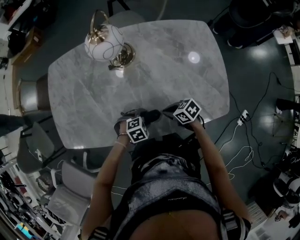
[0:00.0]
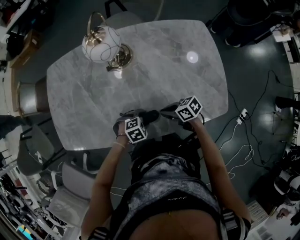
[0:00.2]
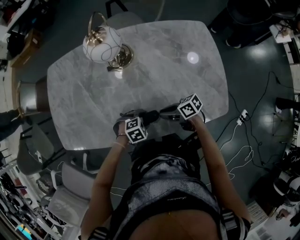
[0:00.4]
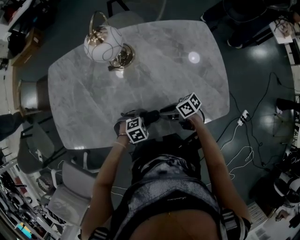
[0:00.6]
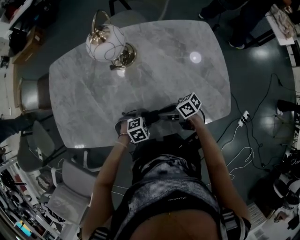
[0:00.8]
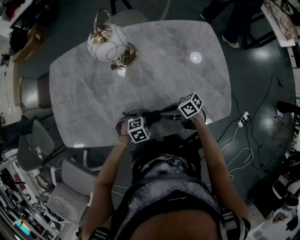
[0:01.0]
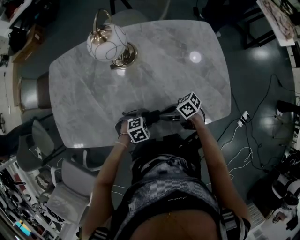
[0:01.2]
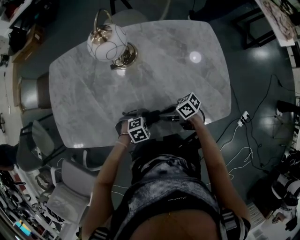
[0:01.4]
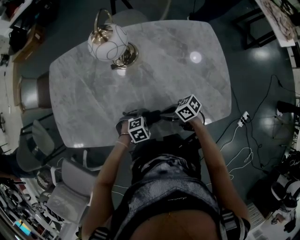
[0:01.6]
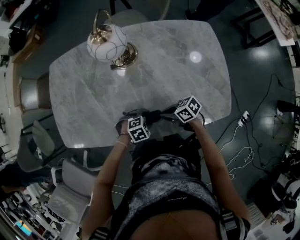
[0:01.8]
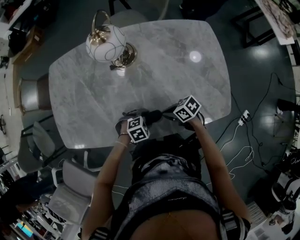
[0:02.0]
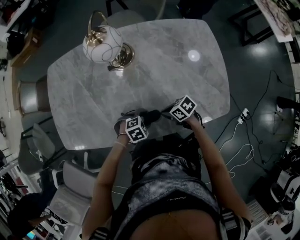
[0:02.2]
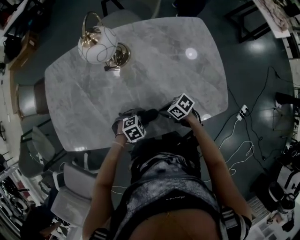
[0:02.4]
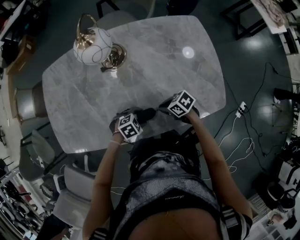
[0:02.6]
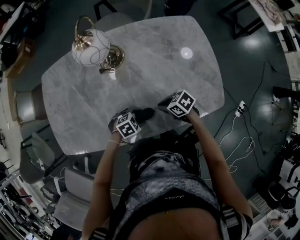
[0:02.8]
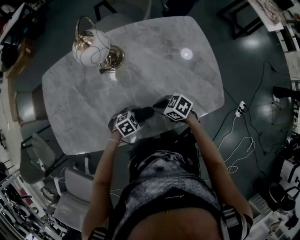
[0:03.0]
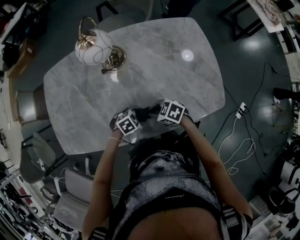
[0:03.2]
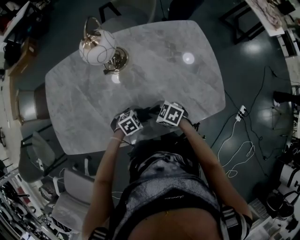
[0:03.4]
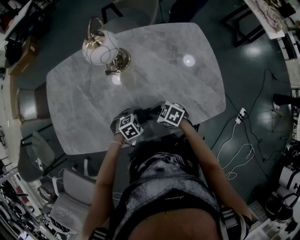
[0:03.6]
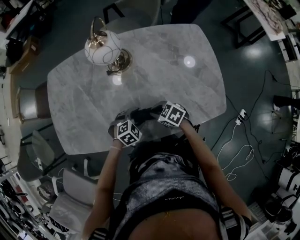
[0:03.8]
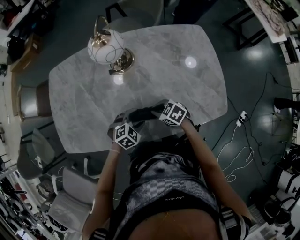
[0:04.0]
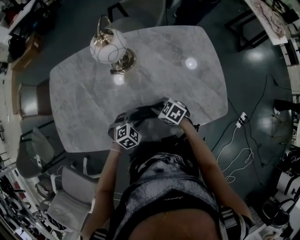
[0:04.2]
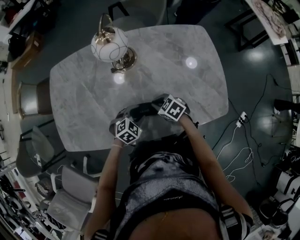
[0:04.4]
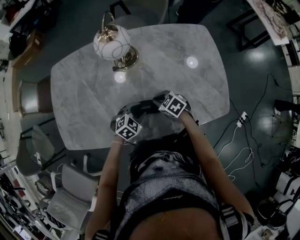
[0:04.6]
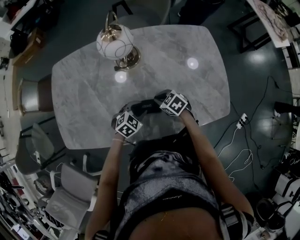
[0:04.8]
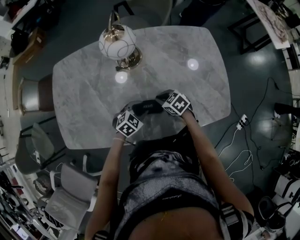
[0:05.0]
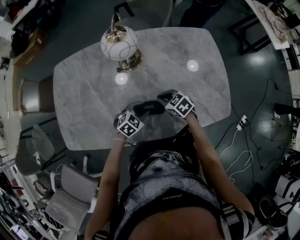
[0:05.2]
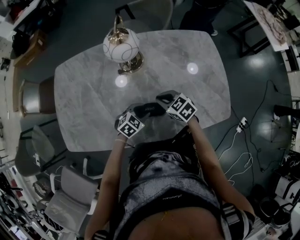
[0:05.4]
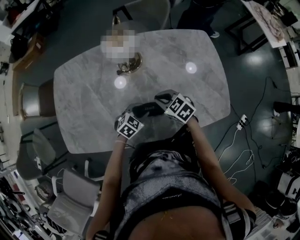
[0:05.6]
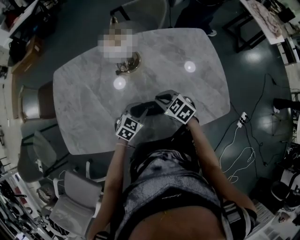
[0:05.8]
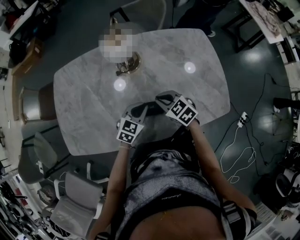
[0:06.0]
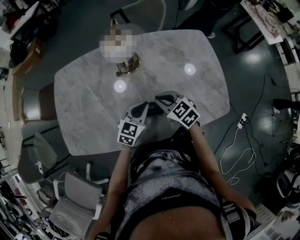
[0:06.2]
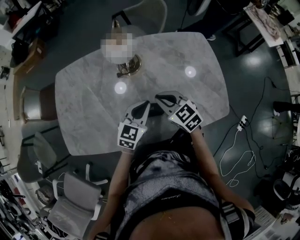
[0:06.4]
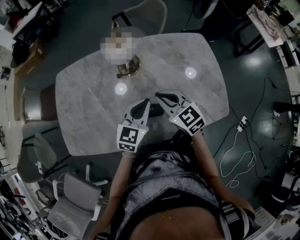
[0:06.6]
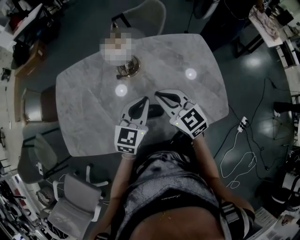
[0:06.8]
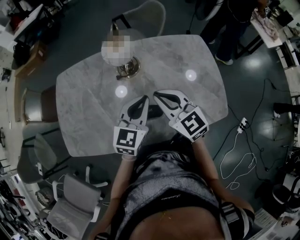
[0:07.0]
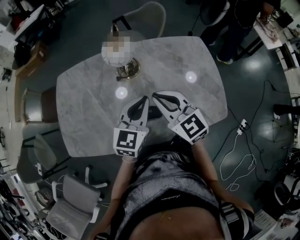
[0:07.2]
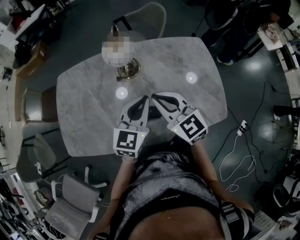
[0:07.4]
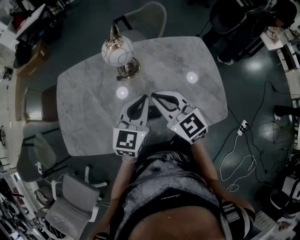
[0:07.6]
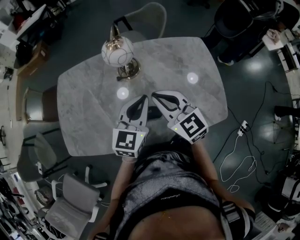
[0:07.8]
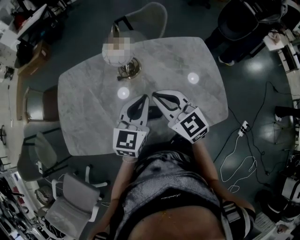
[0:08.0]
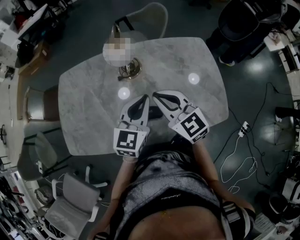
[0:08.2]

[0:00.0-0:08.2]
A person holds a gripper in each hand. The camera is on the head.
0:01.6 to 0:03.2: The right gripper turns by some 30 degrees.
0:03.2 to 0:05.0: The right gripper moves about 10 cm. The left gripper shifts by roughly 10 cm, swivels some 30 degrees, and closes.
0:05.0 to 0:06.6: Both grippers move upward, about 20 cm. The right gripper rotates some 30 degrees. Meanwhile the left gripper points its fingers some 30 degrees further upward, and closes its fingers.
0:06.6 to 0:08.2: Both grippers travel together upward, some 5 cm.

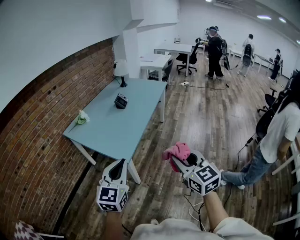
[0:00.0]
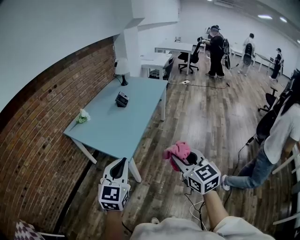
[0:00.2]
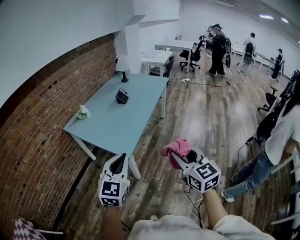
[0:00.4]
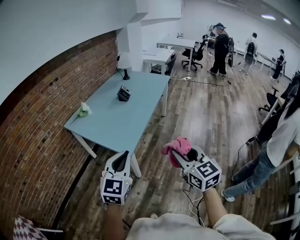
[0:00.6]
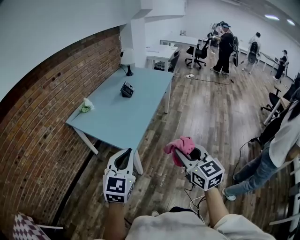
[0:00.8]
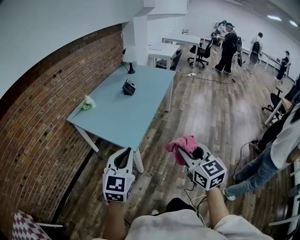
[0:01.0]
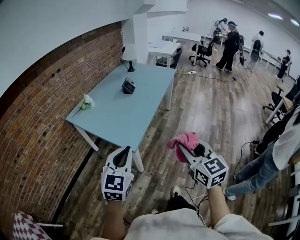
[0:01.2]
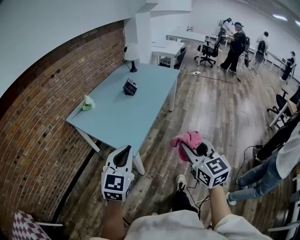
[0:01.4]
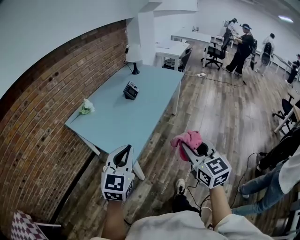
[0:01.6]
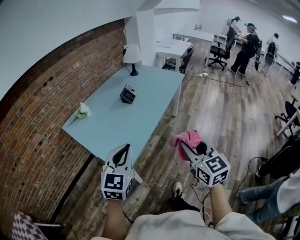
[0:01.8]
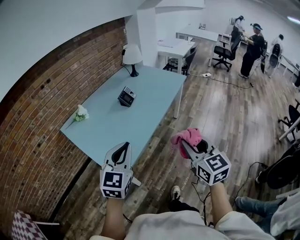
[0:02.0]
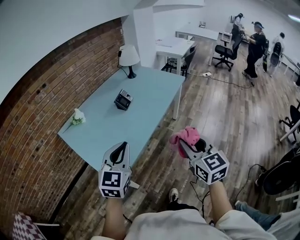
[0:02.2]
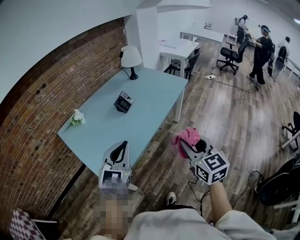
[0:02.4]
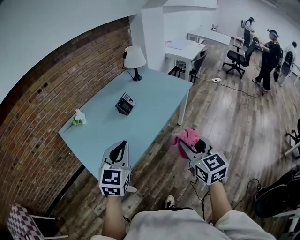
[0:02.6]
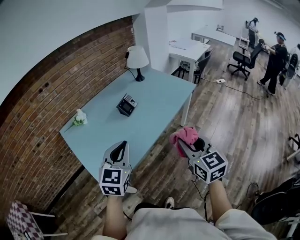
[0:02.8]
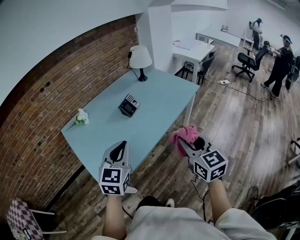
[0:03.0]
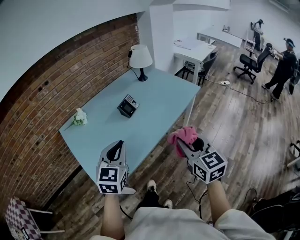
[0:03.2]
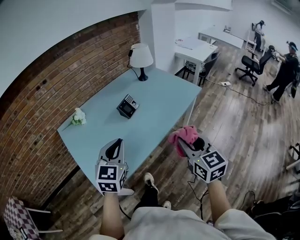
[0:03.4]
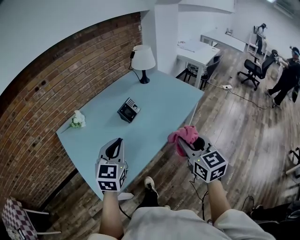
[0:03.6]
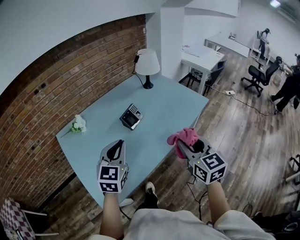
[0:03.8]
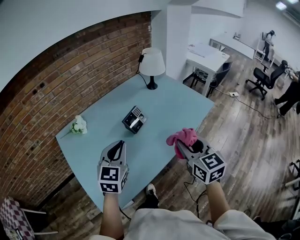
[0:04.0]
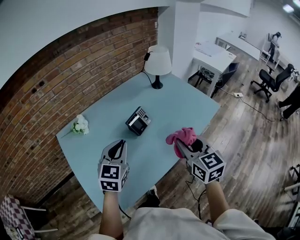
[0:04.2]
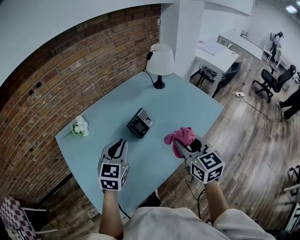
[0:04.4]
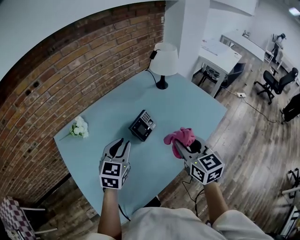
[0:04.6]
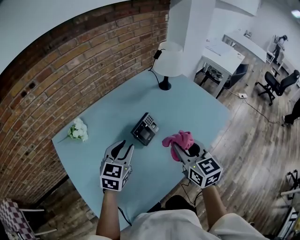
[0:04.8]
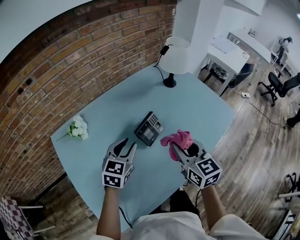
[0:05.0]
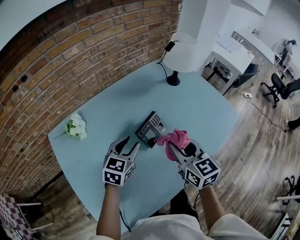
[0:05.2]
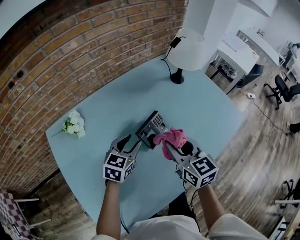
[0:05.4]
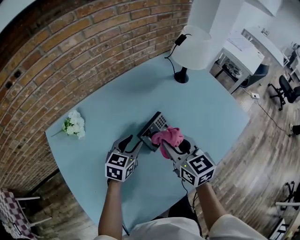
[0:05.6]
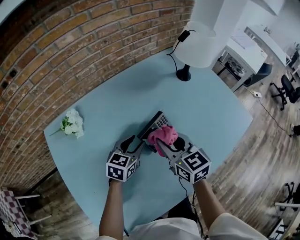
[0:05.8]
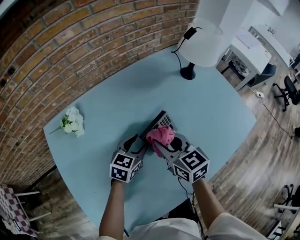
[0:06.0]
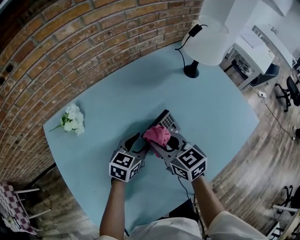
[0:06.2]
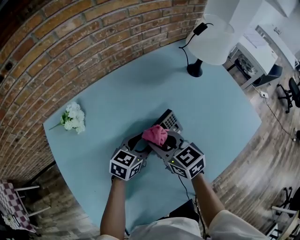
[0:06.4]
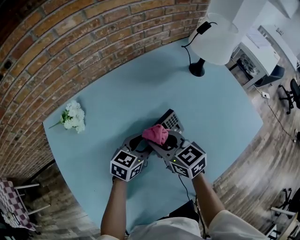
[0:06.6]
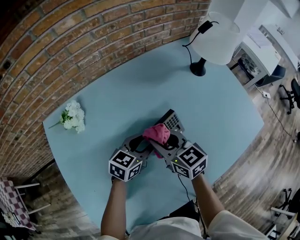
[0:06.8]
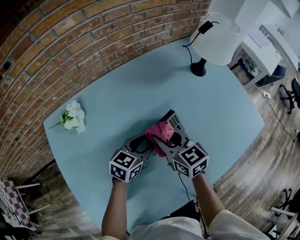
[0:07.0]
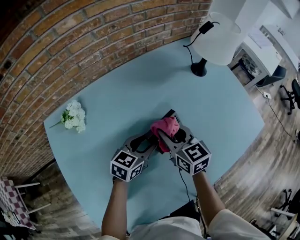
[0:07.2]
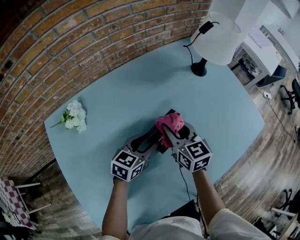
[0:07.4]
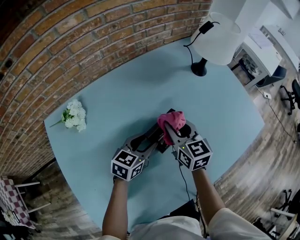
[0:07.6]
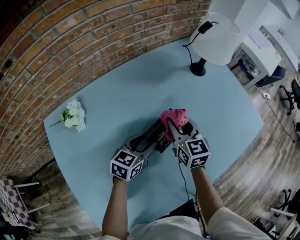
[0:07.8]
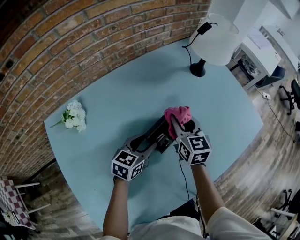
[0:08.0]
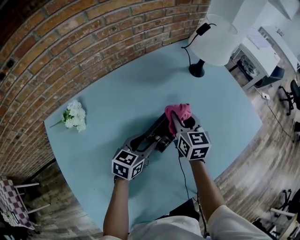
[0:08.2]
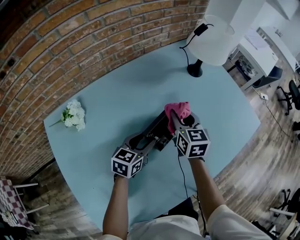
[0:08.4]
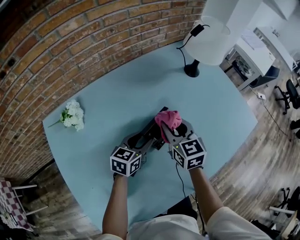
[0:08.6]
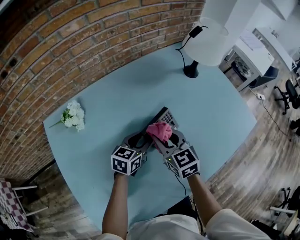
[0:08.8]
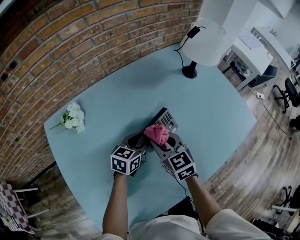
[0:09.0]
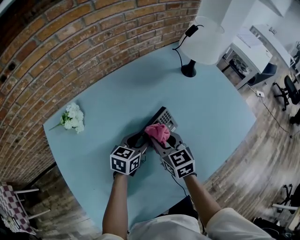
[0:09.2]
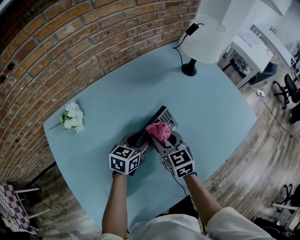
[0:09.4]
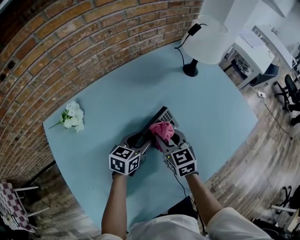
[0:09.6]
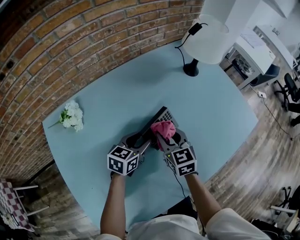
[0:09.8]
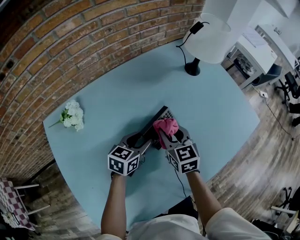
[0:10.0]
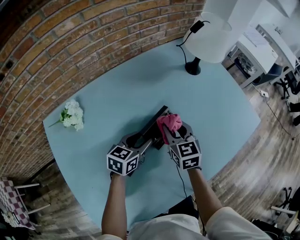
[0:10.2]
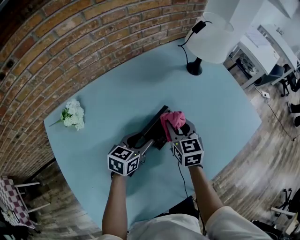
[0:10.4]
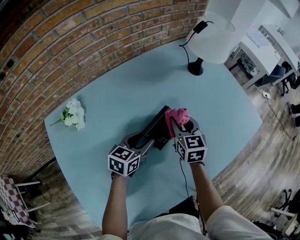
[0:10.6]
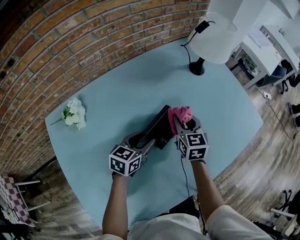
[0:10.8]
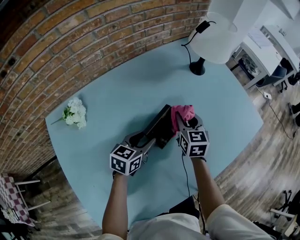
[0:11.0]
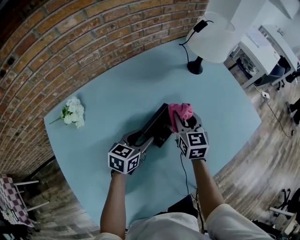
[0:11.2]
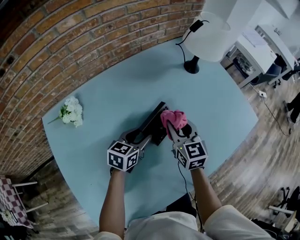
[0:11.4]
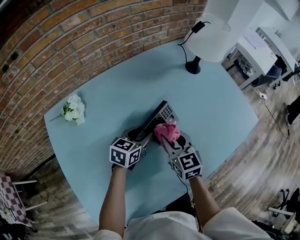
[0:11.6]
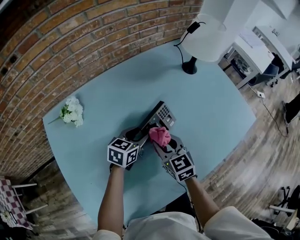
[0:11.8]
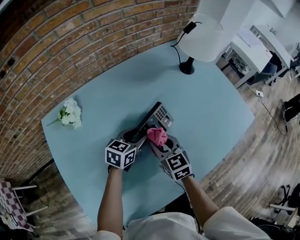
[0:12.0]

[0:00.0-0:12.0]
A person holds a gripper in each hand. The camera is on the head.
0:00.0 to 0:01.6: Both grippers travel together forward, some 15 cm.
0:01.6 to 0:03.0: Both grippers travel together forward and to the right, about 30 cm.
0:03.0 to 0:04.4: Both grippers travel together forward, approximately 30 cm.
0:04.4 to 0:06.0: The left gripper travels downward and forward by some 30 cm, rotates some 20 degrees, and opens up. The right gripper is displaced forward, downward and to the left by some 30 cm, and turns by some 20 degrees.
0:06.0 to 0:07.6: The right gripper shifts roughly 5 cm forward.
0:07.6 to 0:09.0: The right gripper shifts some 10 cm backward.
0:09.0 to 0:10.4: The right gripper shifts about 10 cm forward and to the right.
0:10.4 to 0:12.0: The right gripper goes approximately 10 cm backward.

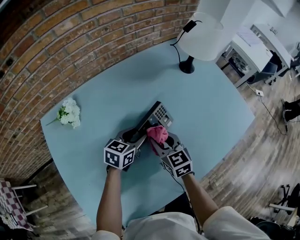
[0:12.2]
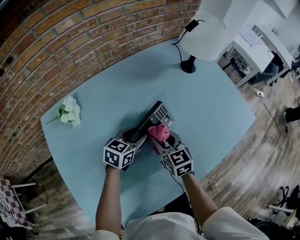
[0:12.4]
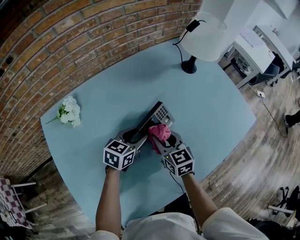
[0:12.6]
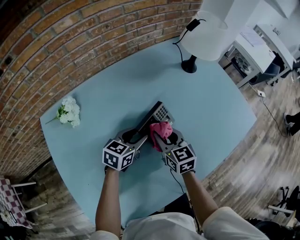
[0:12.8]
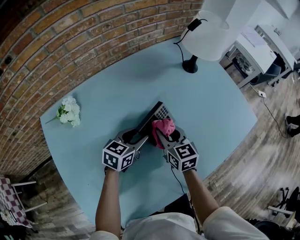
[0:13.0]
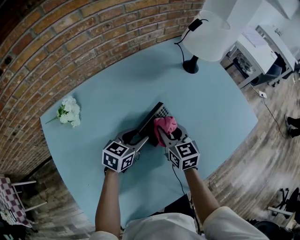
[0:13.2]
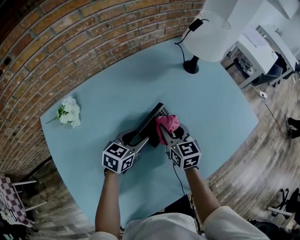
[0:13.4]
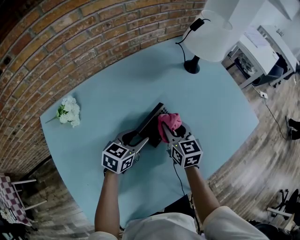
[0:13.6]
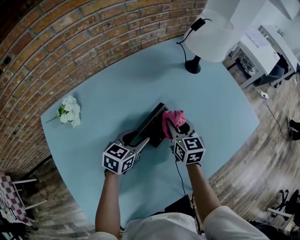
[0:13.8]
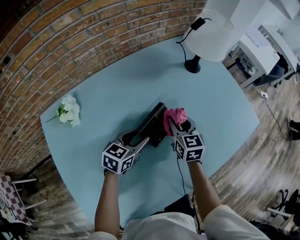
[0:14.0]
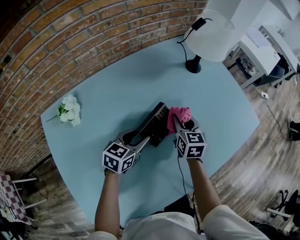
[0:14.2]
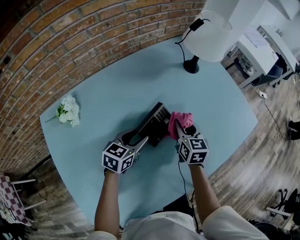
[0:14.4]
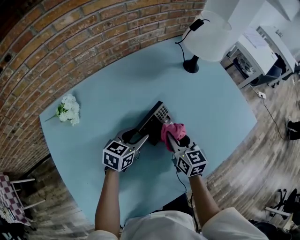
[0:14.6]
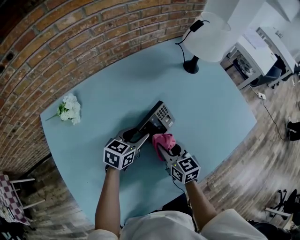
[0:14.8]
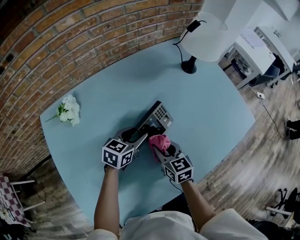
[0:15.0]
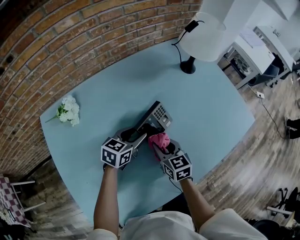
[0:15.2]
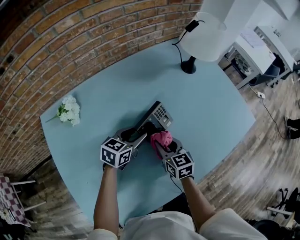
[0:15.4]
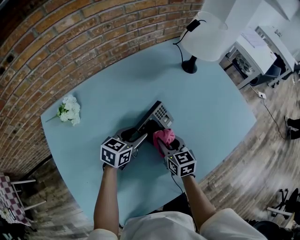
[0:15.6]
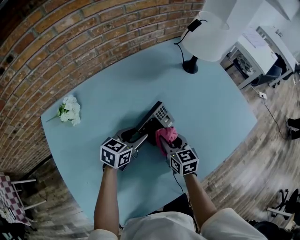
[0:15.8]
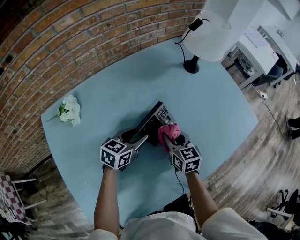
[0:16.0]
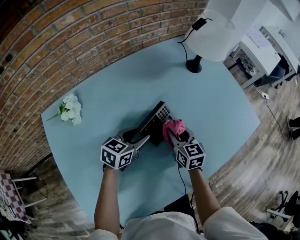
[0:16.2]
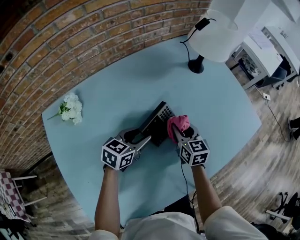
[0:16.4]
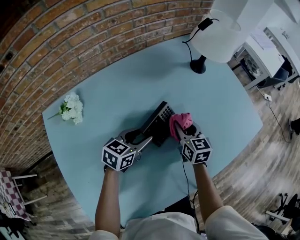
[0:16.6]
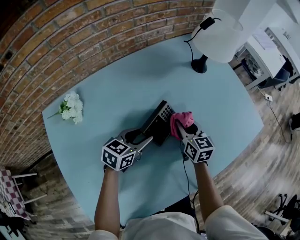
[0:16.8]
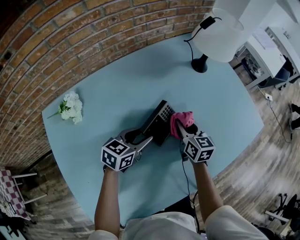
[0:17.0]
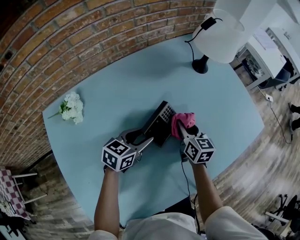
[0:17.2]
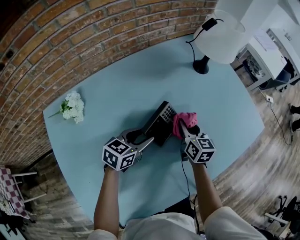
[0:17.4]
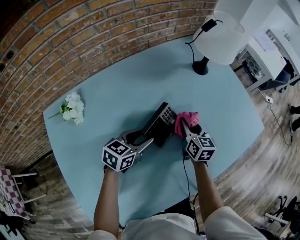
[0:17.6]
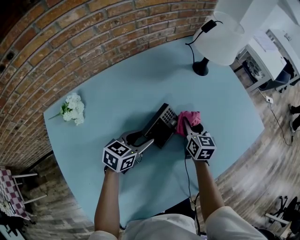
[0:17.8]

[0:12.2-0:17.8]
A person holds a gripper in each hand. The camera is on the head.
0:12.2 to 0:13.6: The right gripper is displaced forward by some 5 cm.
0:13.6 to 0:15.0: The right gripper heads backward, covering some 10 cm.
0:15.0 to 0:16.4: The right gripper travels forward and to the right by approximately 10 cm.
0:16.4 to 0:17.8: The right gripper moves about 5 cm.
